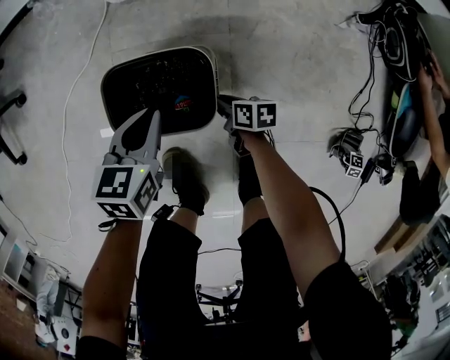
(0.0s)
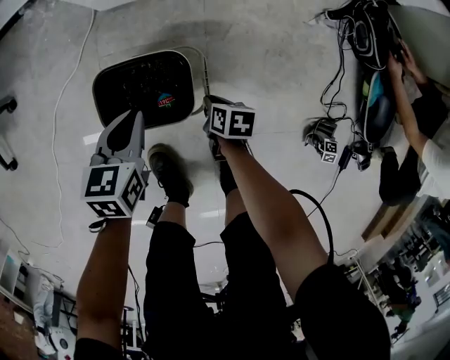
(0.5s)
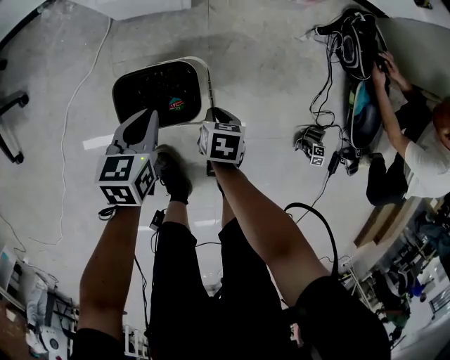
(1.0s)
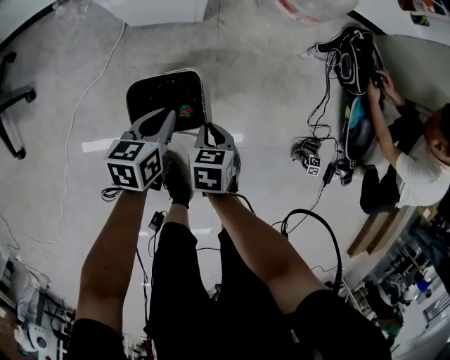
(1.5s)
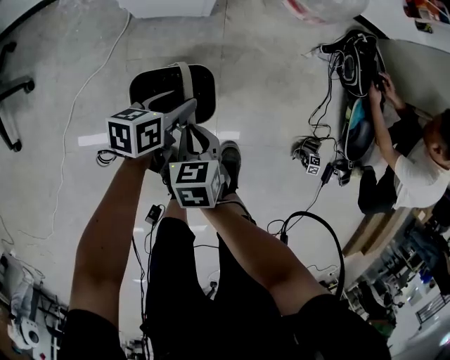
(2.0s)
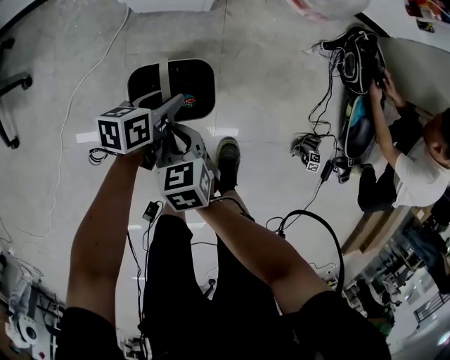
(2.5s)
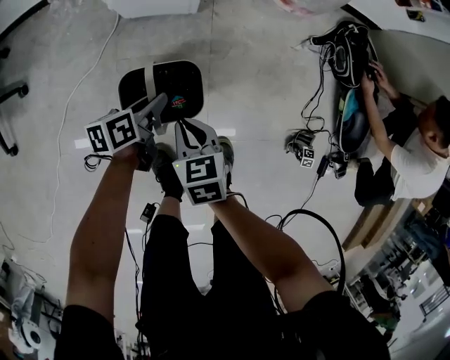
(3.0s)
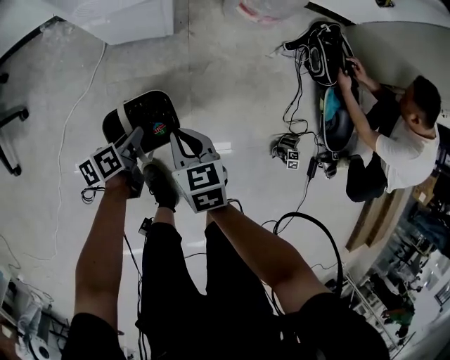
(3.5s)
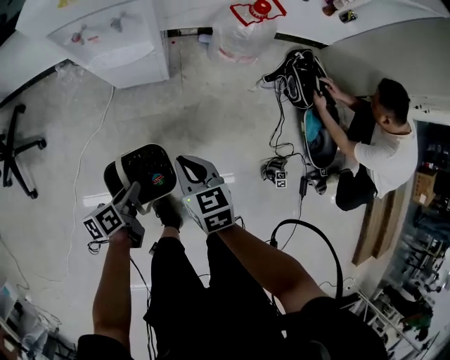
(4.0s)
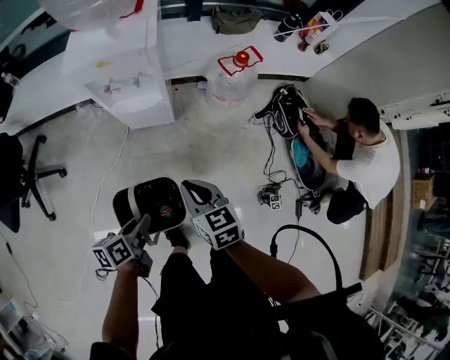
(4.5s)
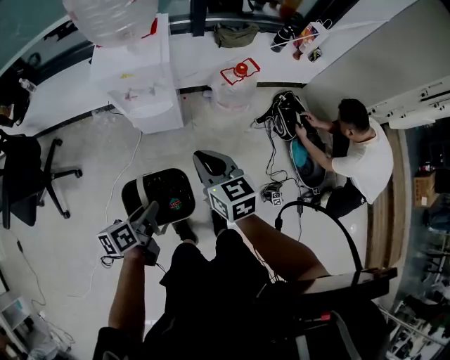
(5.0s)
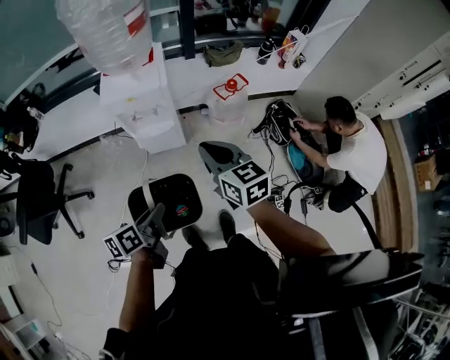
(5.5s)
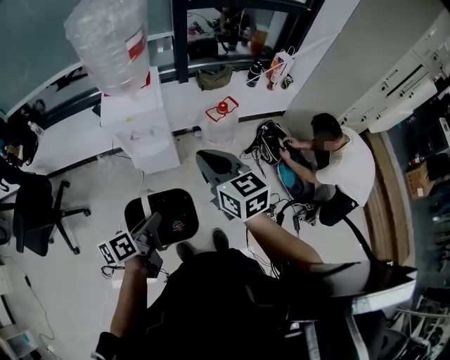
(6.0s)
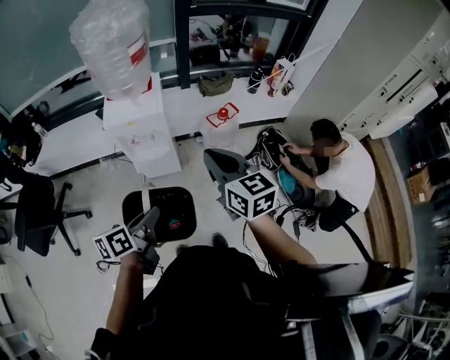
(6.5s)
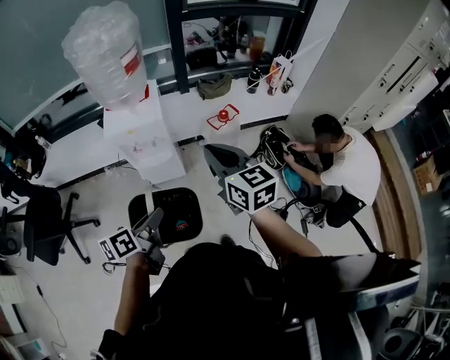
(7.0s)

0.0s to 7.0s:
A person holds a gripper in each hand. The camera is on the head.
0.0s to 2.0s: The left gripper shifts roughly 10 cm upward, swivels about 30 degrees, and opens its fingers. Meanwhile the right gripper travels upward by roughly 30 cm, and swivels roughly 40 degrees.
2.0s to 3.5s: The right gripper travels upward and to the right by about 10 cm; the left gripper heads backward, covering approximately 5 cm, swivels roughly 20 degrees, and closes its fingers.
3.5s to 5.0s: The two grippers go about 40 cm upward. The right gripper rotates approximately 20 degrees.
5.0s to 7.0s: Both grippers move upward, about 20 cm.

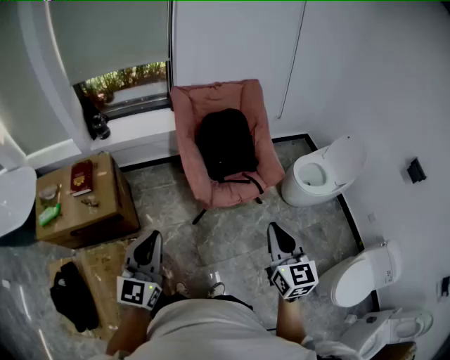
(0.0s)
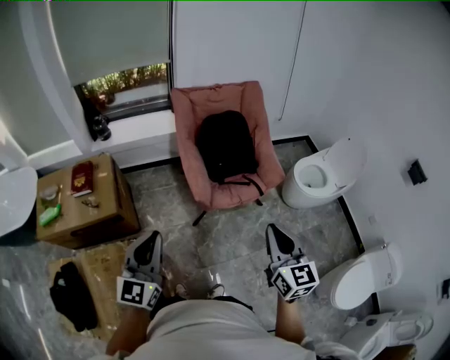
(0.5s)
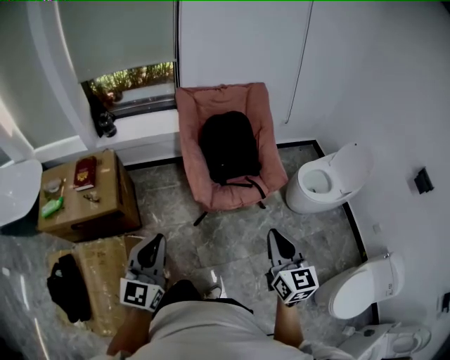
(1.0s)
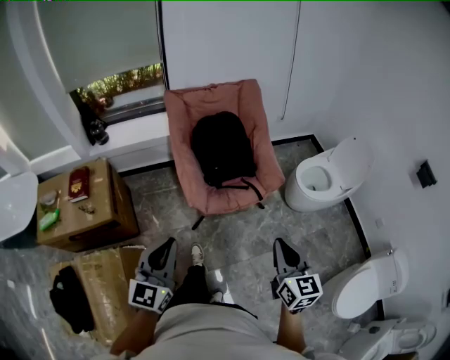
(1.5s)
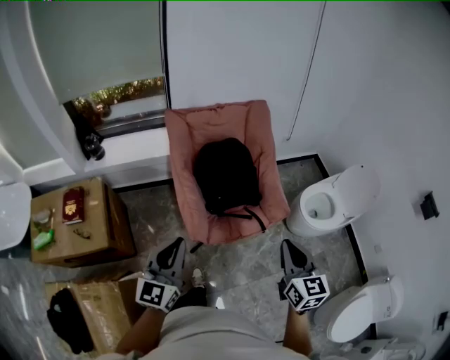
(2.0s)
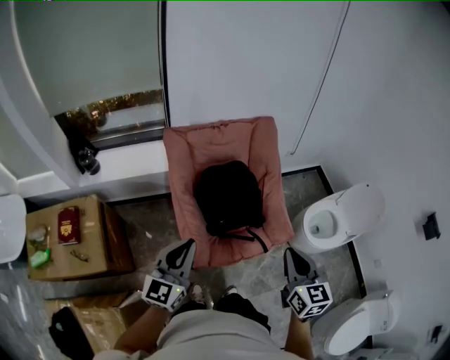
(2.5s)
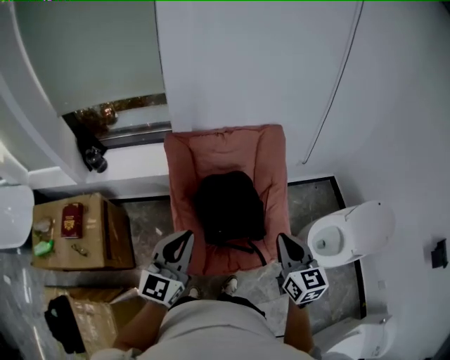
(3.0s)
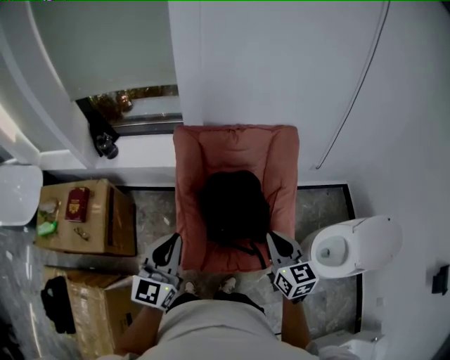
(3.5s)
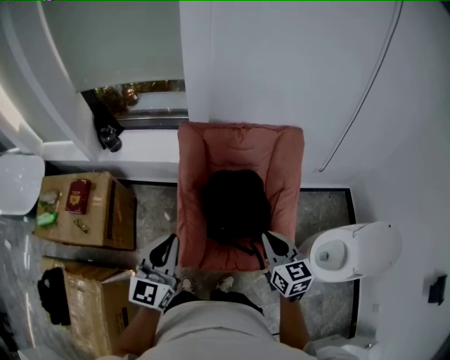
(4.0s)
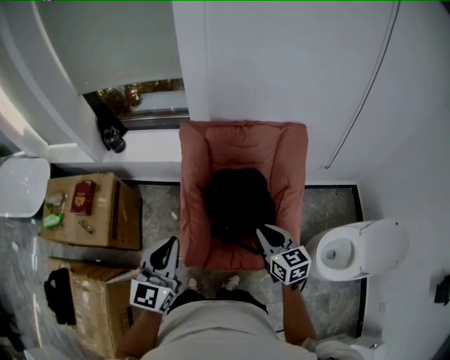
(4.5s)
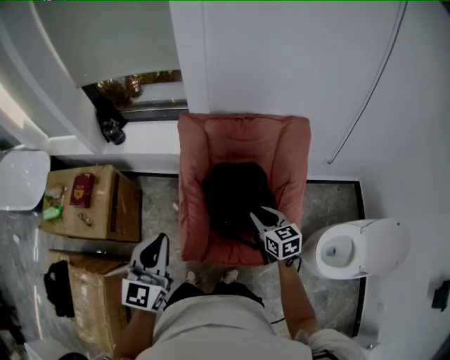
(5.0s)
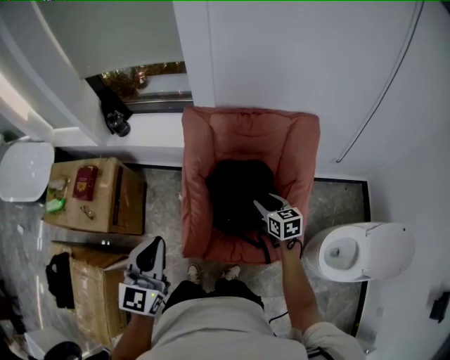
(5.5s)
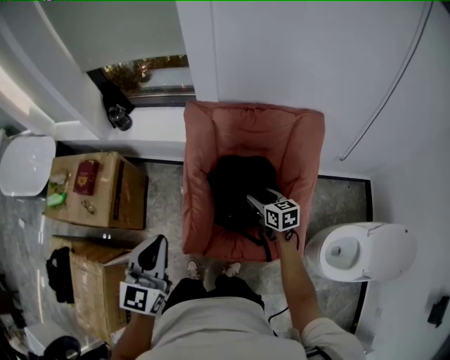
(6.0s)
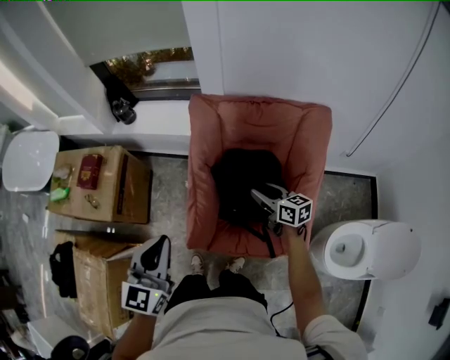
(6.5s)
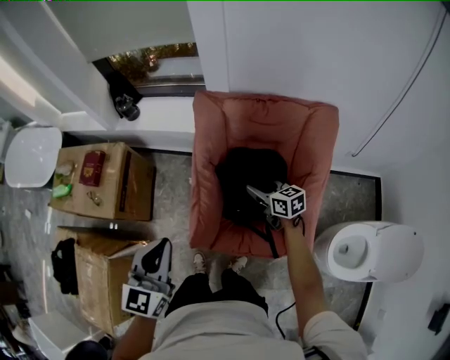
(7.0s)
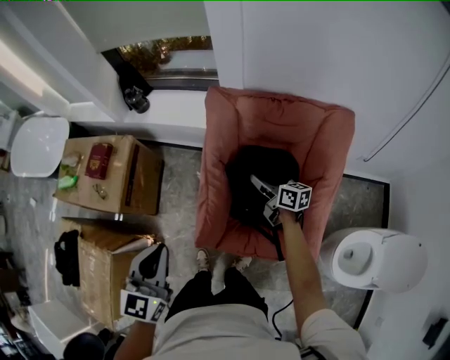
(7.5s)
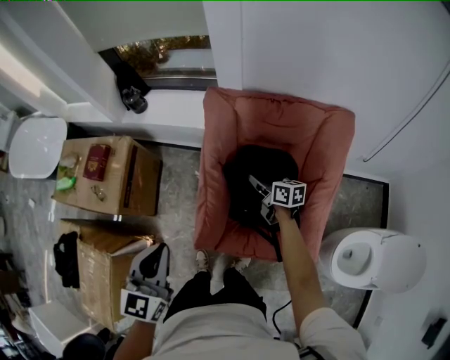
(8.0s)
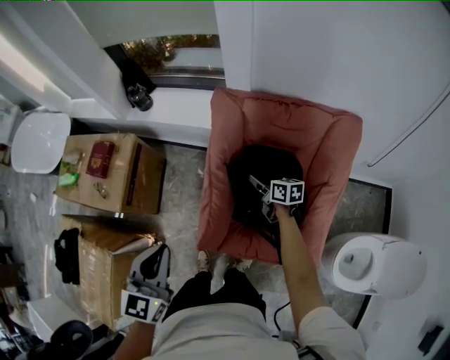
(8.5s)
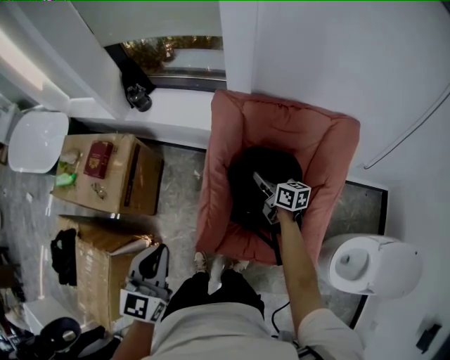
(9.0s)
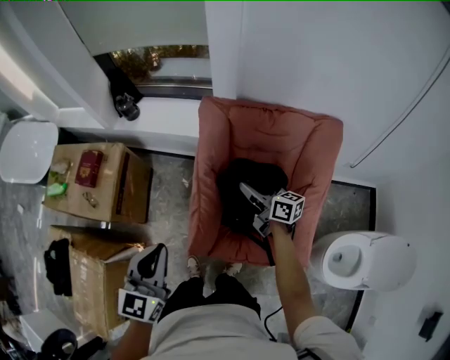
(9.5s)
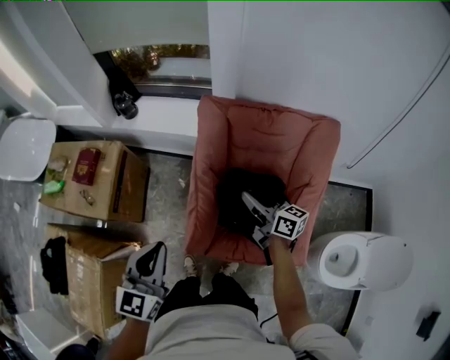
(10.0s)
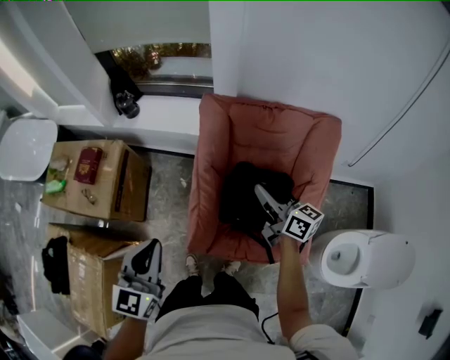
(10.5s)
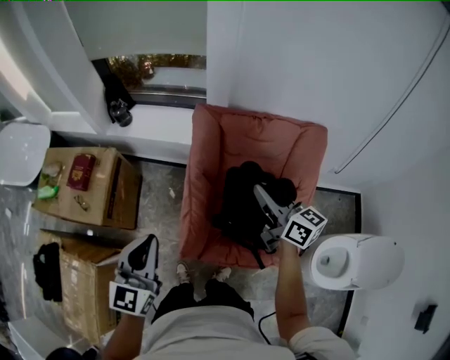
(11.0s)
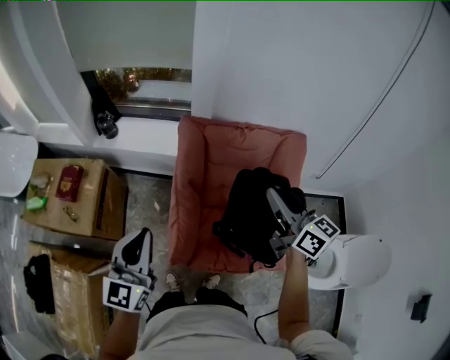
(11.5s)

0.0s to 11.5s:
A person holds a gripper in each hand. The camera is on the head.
0.0s to 2.0s: The grippers both shift forward and to the right by about 20 cm.
2.0s to 4.0s: The right gripper changes place by roughly 30 cm, and swivels roughly 30 degrees. The left gripper shifts by roughly 20 cm.
4.0s to 6.0s: The right gripper moves downward and forward, roughly 25 cm, turns by some 20 degrees, and opens its fingers.
6.0s to 7.5s: The right gripper moves forward, some 10 cm, and rotates about 30 degrees.
7.5s to 9.5s: The right gripper goes some 5 cm upward, and closes up.
9.5s to 11.5s: The left gripper shifts approximately 5 cm upward; the right gripper travels upward by some 25 cm, and changes its angle by some 30 degrees.

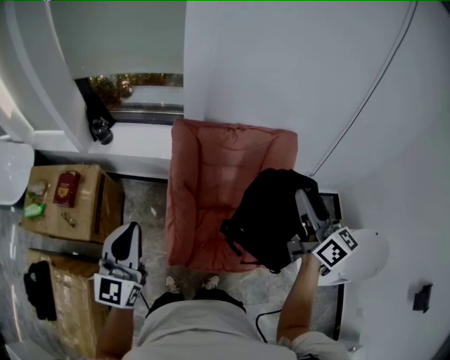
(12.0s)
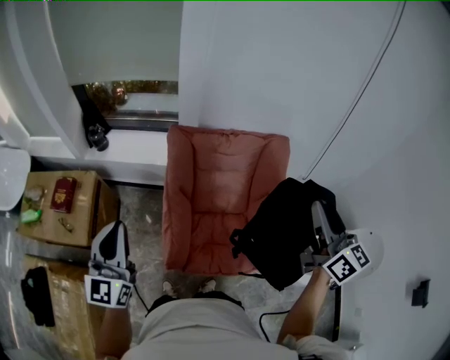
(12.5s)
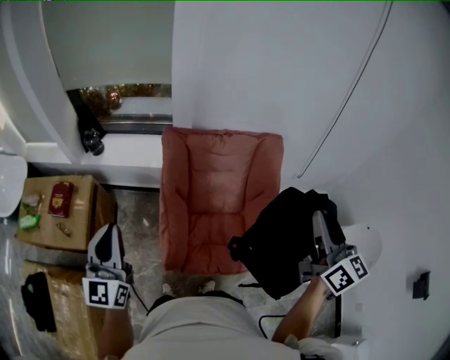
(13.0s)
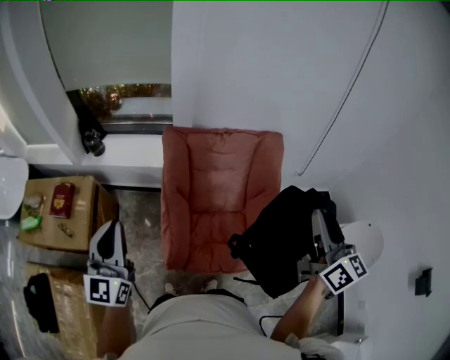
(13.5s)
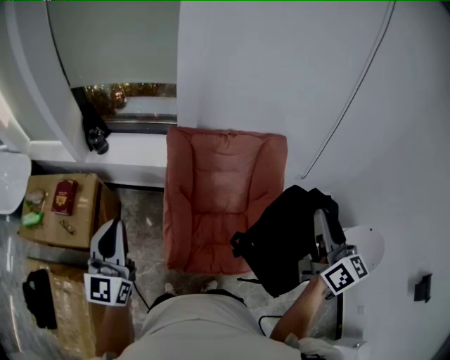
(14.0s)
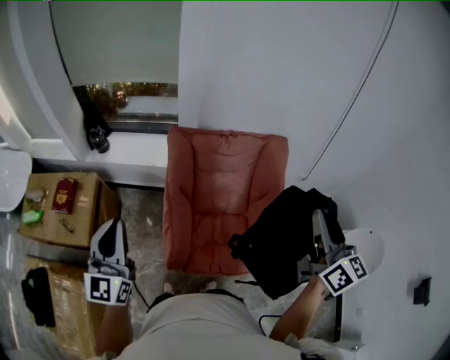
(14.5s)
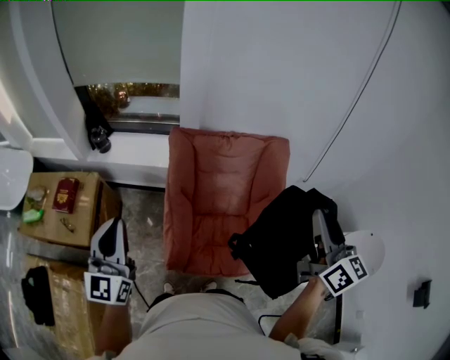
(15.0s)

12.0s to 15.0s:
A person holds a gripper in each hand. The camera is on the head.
12.0s to 13.5s: The right gripper moves backward, some 10 cm.
13.5s to 15.0s: The grippers move only a little.

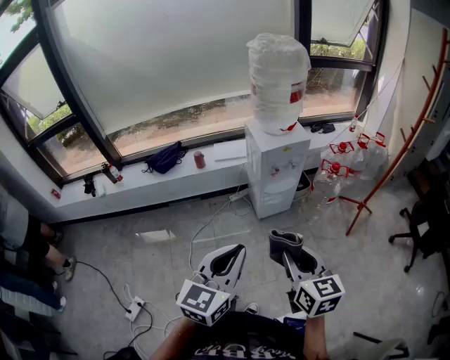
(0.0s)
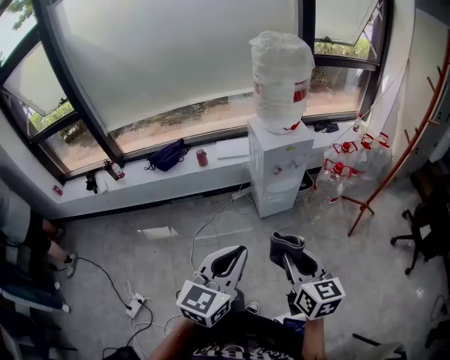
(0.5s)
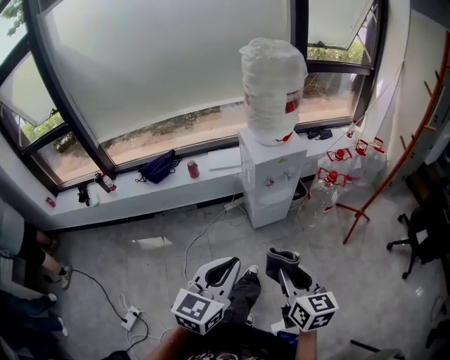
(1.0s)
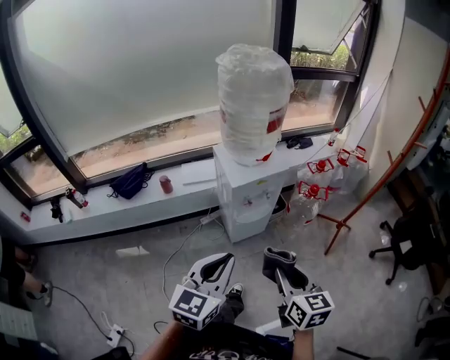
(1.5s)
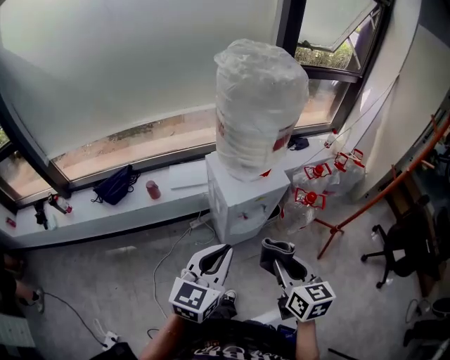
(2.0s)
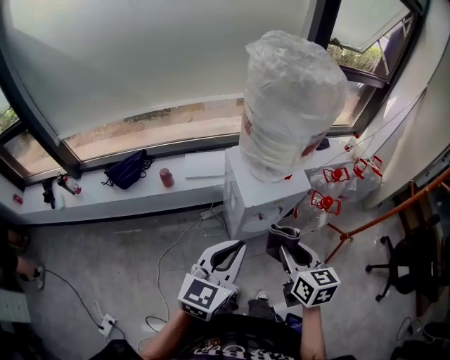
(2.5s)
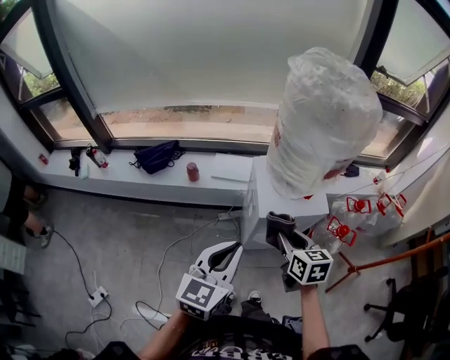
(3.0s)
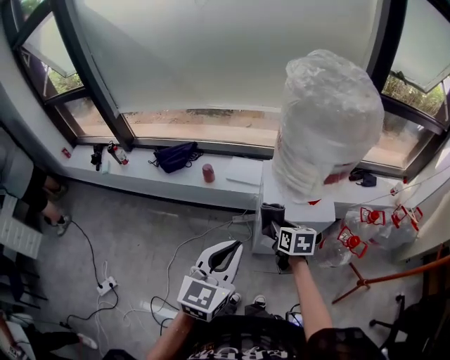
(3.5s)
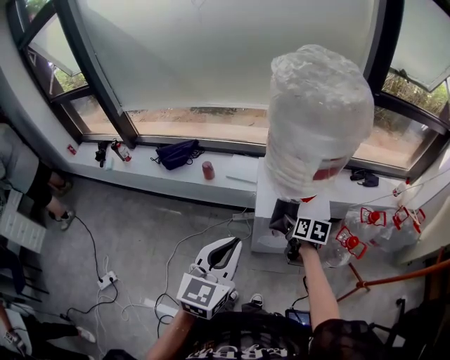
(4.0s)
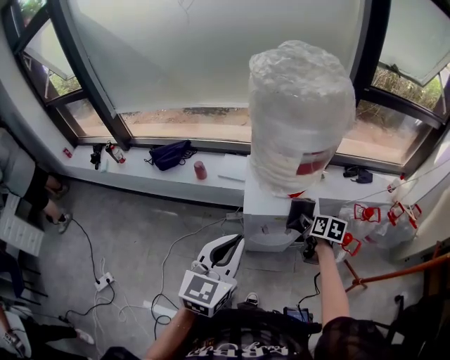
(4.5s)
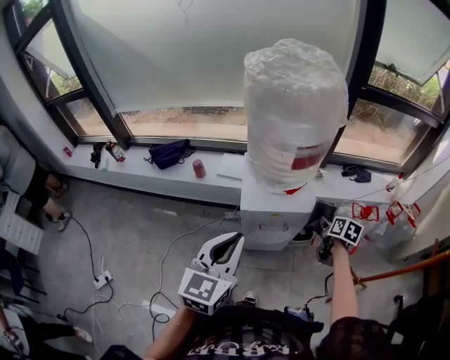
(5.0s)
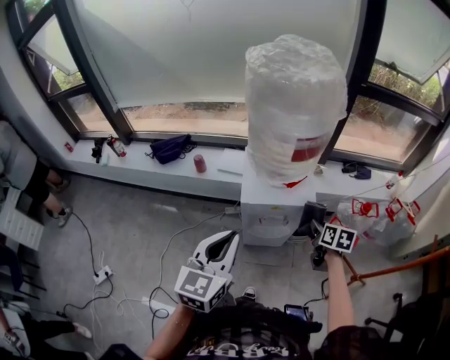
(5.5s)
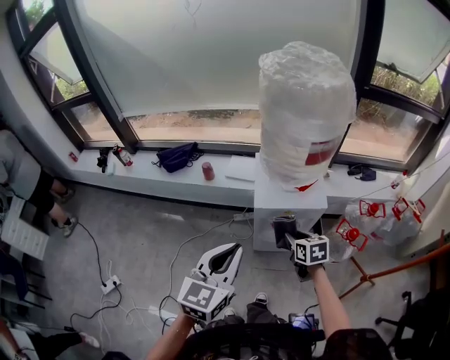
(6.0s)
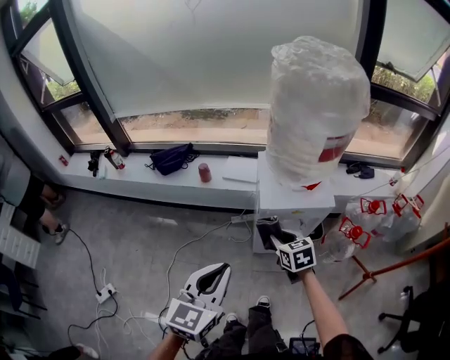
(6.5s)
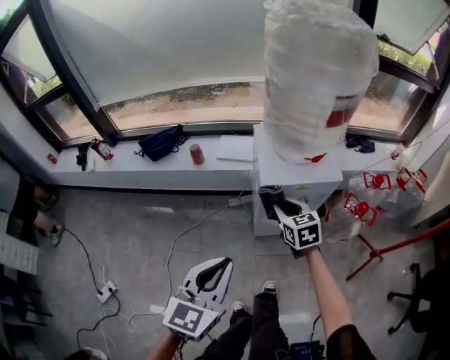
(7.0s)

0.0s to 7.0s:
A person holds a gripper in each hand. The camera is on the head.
0.0s to 2.0s: The grippers both shift forward by about 35 cm.
2.0s to 3.5s: The left gripper moves approximately 5 cm, and changes its angle by roughly 30 degrees, while the right gripper ends up approximately 30 cm from where it was, and turns by roughly 30 degrees.
3.5s to 5.0s: The right gripper travels to the right by some 30 cm, and swivels about 20 degrees, while the left gripper travels to the right by some 10 cm.
5.0s to 7.0s: The right gripper is displaced to the left by roughly 30 cm, and turns by approximately 40 degrees; the left gripper heads downward, to the left and backward, covering roughly 20 cm.
